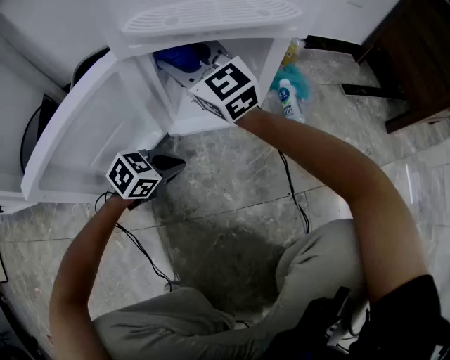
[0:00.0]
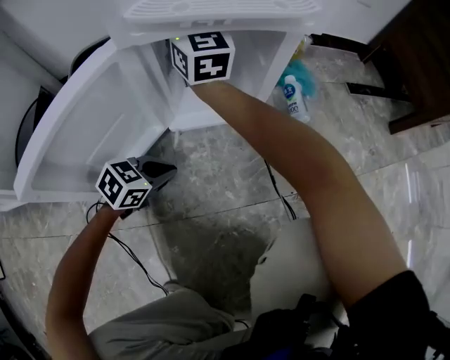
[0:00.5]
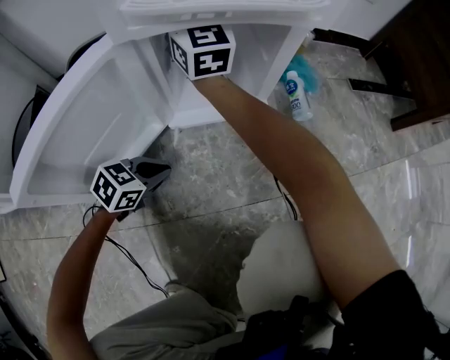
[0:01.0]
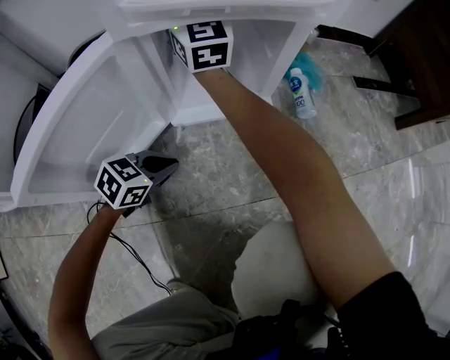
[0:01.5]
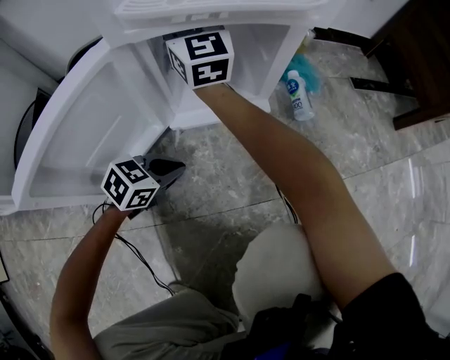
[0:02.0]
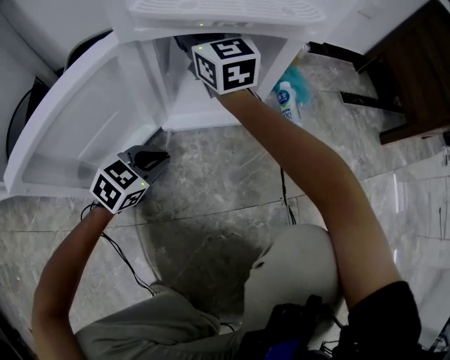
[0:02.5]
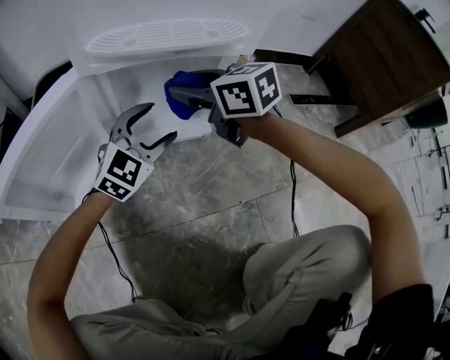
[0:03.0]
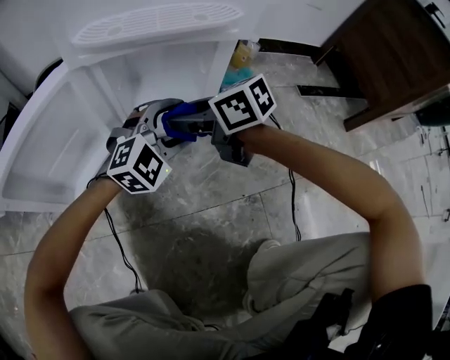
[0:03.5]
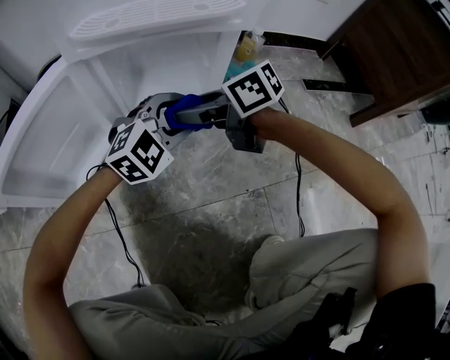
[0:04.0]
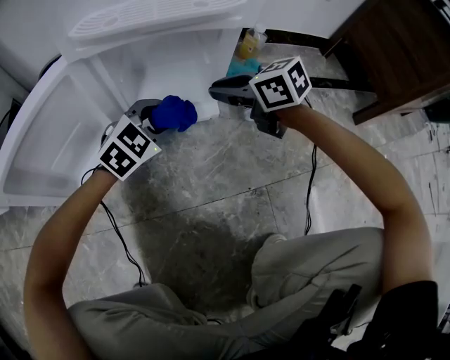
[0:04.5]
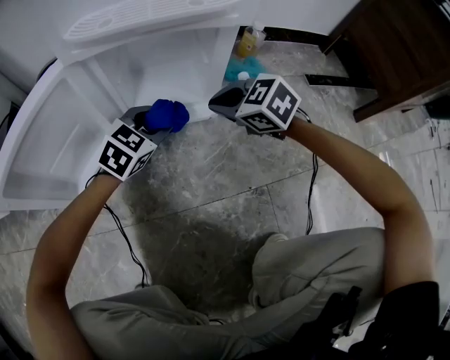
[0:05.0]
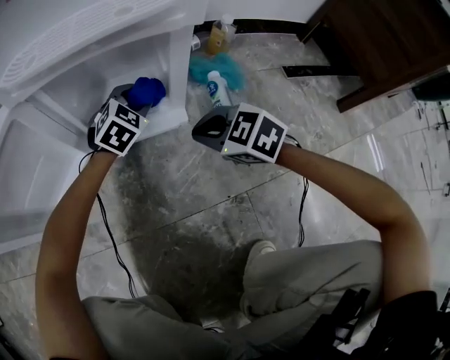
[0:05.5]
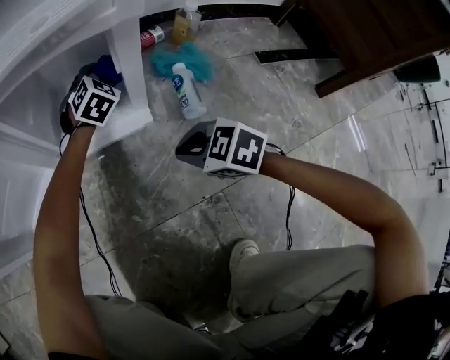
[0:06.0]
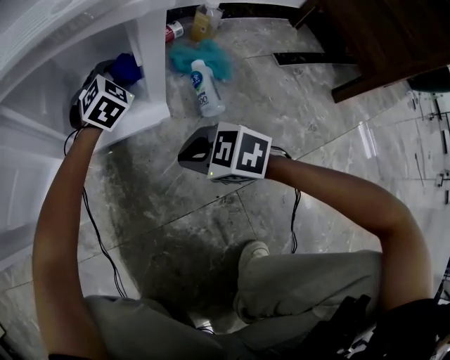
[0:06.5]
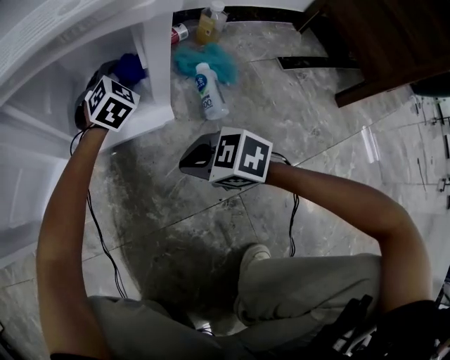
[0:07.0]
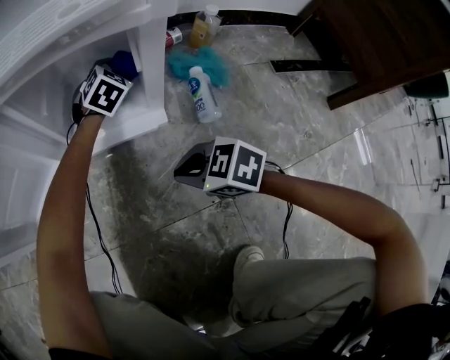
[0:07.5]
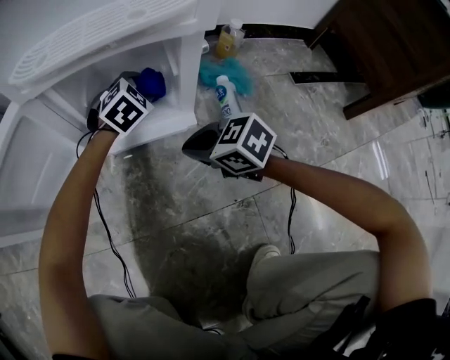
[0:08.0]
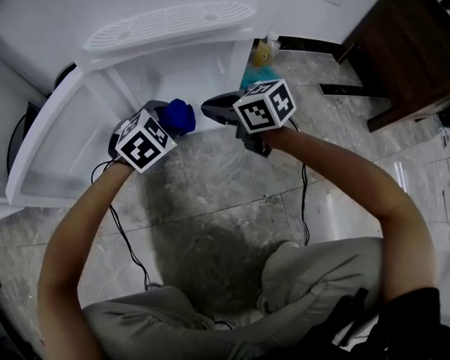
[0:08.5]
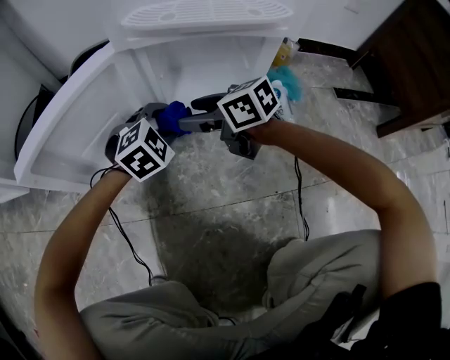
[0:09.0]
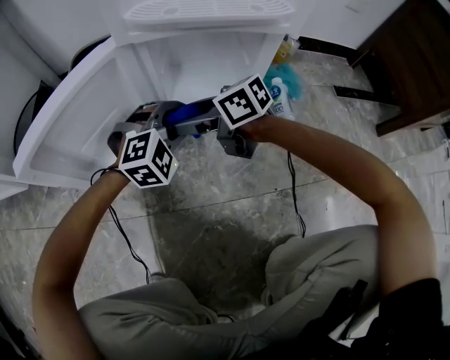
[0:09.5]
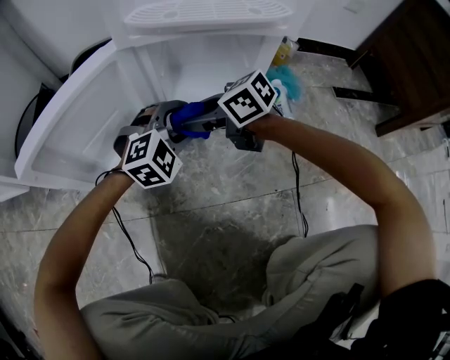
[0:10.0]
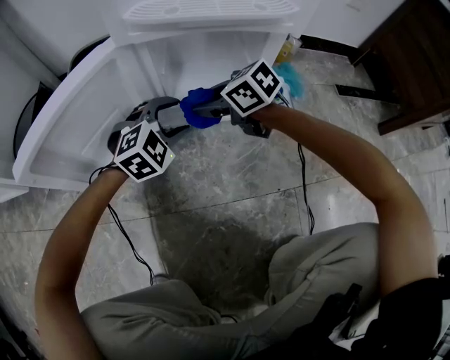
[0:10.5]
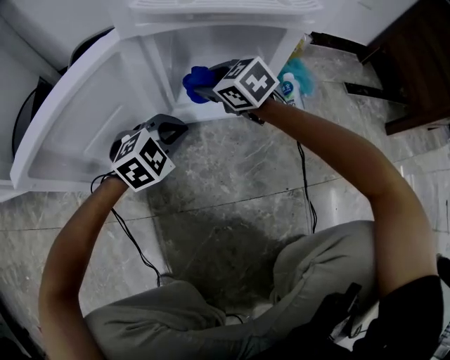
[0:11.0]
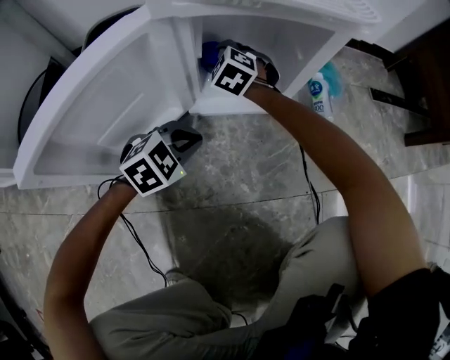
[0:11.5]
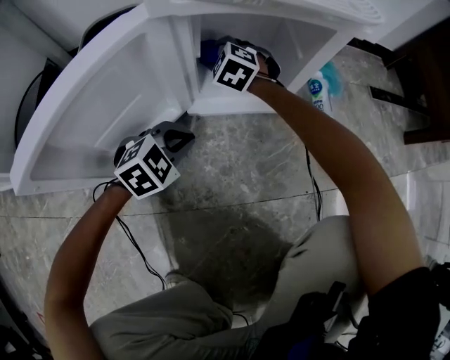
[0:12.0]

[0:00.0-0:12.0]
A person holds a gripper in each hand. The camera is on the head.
0:00.0 to 0:02.0: The right gripper heads forward, covering some 10 cm, and swivels about 30 degrees.
0:02.0 to 0:04.0: The left gripper ends up some 20 cm from where it was, rolls clockwise, seen from behind, by some 50 degrees, and opens up. The right gripper moves some 25 cm, and tips its fingers downward by roughly 40 degrees.
0:04.0 to 0:06.0: The right gripper shifts by roughly 20 cm, swivels some 40 degrees, and closes up, while the left gripper changes place by roughly 25 cm, and changes its angle by roughly 40 degrees.
0:06.0 to 0:08.0: The left gripper ends up about 5 cm from where it was; the right gripper is displaced forward and to the left by some 10 cm.
0:08.0 to 0:10.0: The right gripper is displaced to the left, forward and upward by some 15 cm, and opens; the left gripper moves backward and to the left, some 20 cm.
0:10.0 to 0:12.0: The left gripper shifts by about 10 cm, swivels roughly 30 degrees, and closes. The right gripper changes place by about 20 cm, and turns by approximately 60 degrees.

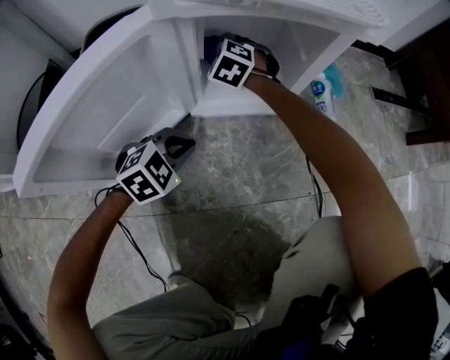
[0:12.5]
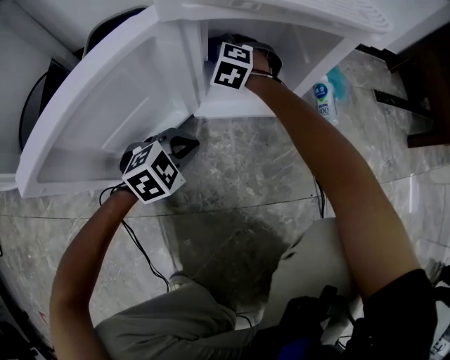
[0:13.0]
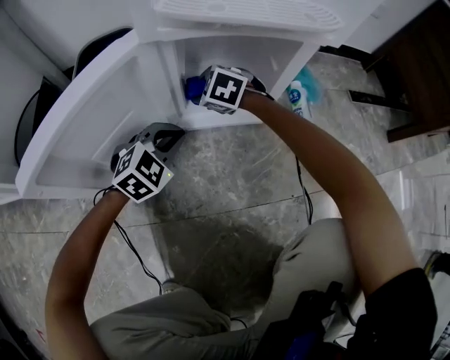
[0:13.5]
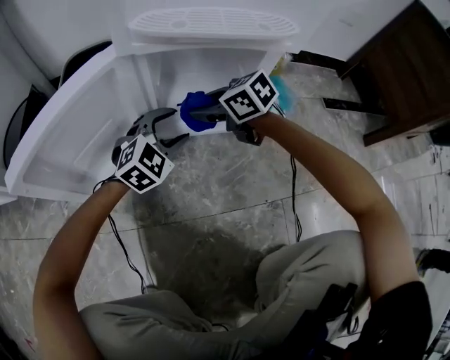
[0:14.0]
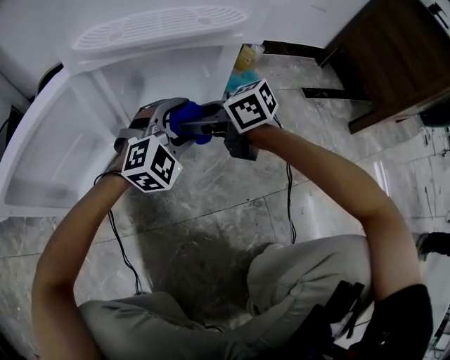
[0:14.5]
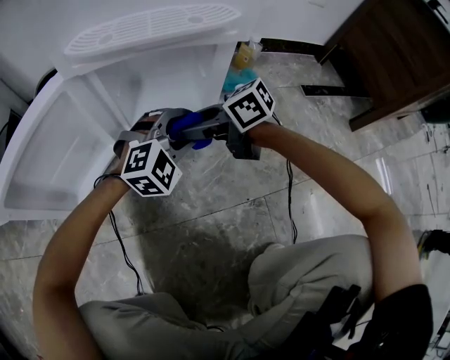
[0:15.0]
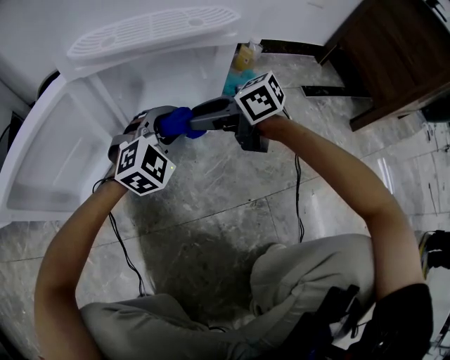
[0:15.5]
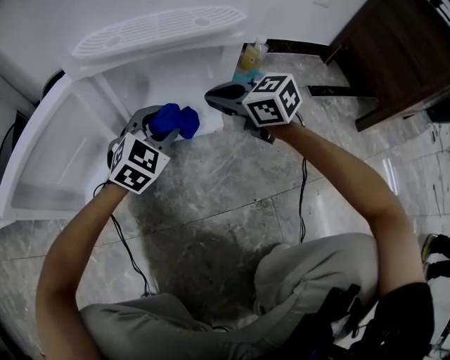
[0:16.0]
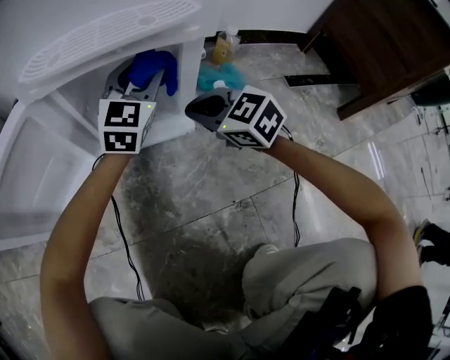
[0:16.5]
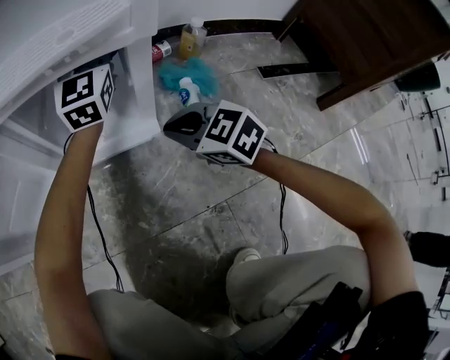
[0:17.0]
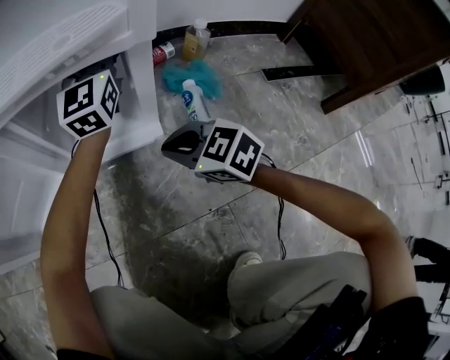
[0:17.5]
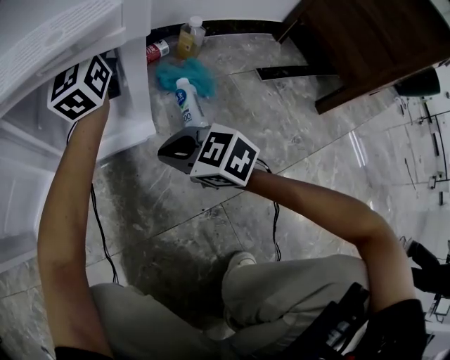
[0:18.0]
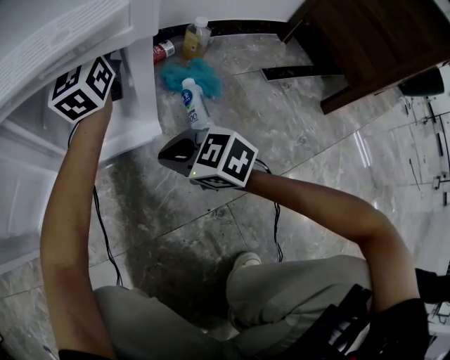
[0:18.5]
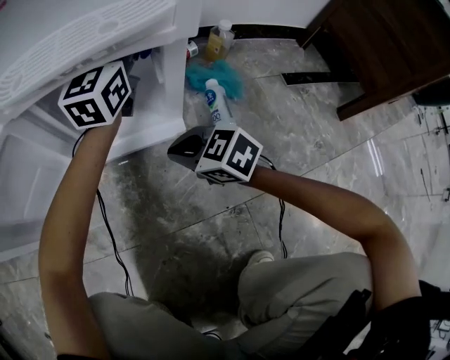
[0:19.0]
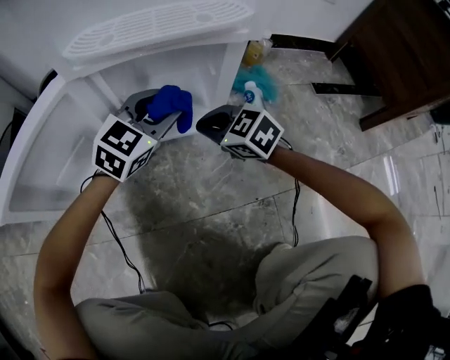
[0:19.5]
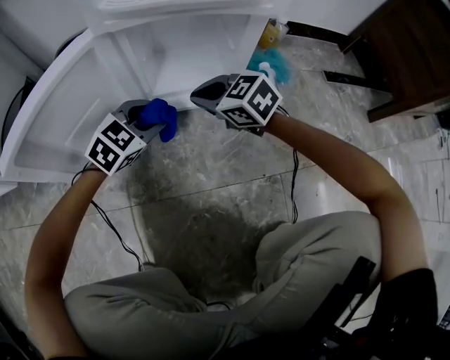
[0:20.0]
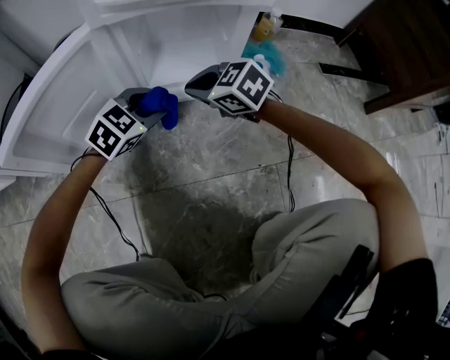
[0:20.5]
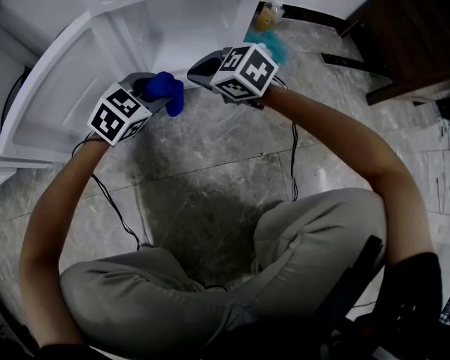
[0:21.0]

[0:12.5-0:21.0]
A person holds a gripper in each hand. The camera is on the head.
0:12.5 to 0:14.5: The right gripper moves about 25 cm, and turns by approximately 70 degrees. Meanwhile the left gripper moves about 25 cm, turns by approximately 30 degrees, and opens its fingers.
0:14.5 to 0:16.5: The left gripper changes place by roughly 15 cm, swivels about 40 degrees, and closes, while the right gripper moves approximately 10 cm, changes its angle by about 40 degrees, and closes.
0:16.5 to 0:19.0: The right gripper heads downward, covering about 5 cm, while the left gripper heads upward and forward, covering roughly 10 cm.
0:19.0 to 0:21.0: The right gripper travels to the left by about 10 cm, while the left gripper moves backward, downward and to the left, roughly 30 cm, and angles its fingers downward, by roughly 40 degrees.

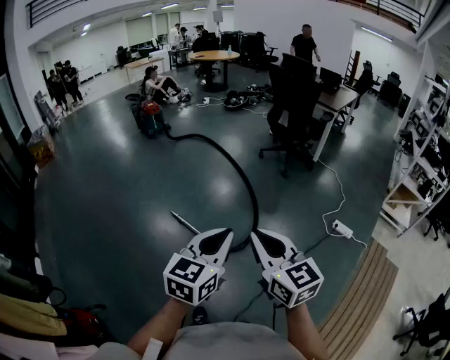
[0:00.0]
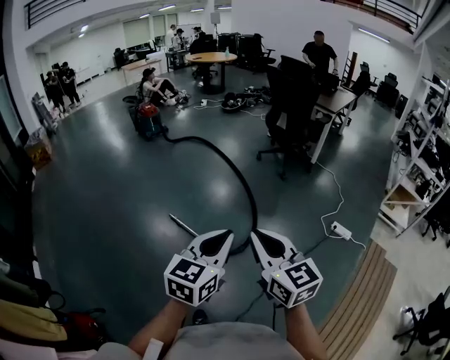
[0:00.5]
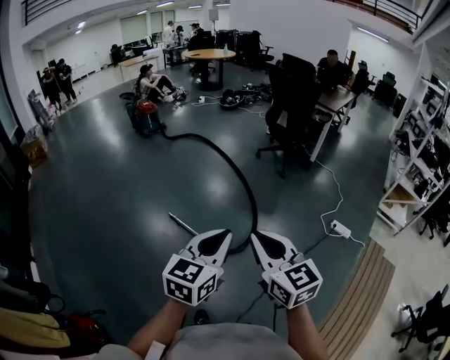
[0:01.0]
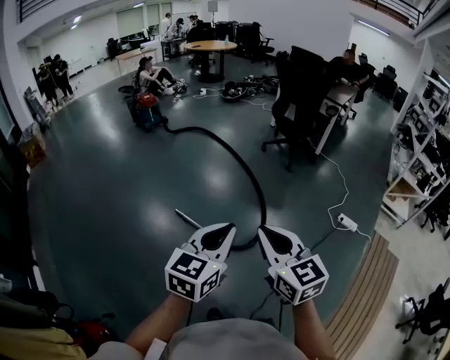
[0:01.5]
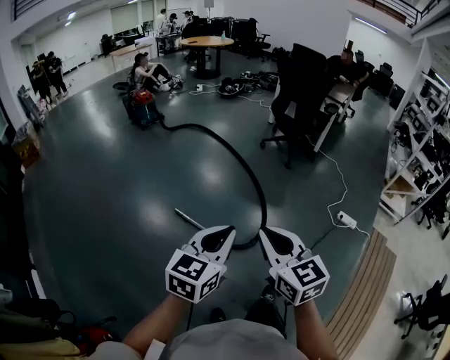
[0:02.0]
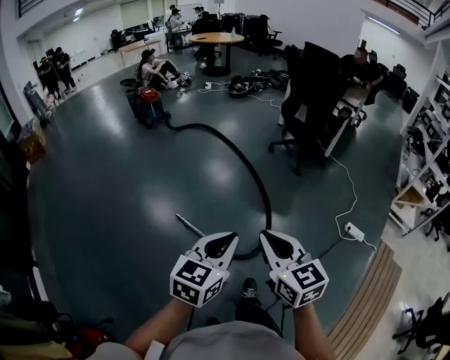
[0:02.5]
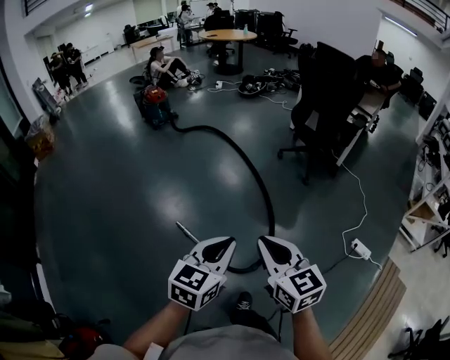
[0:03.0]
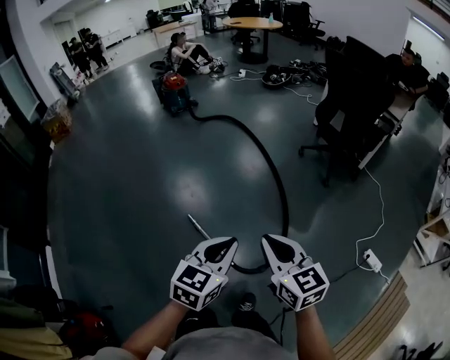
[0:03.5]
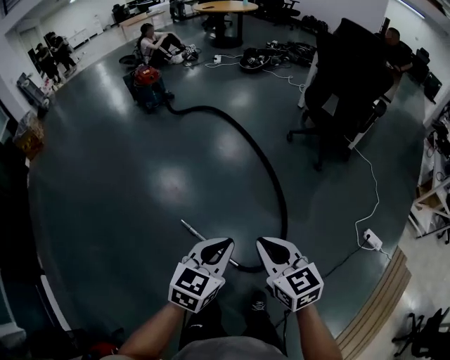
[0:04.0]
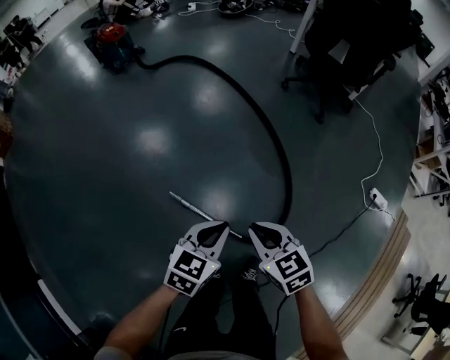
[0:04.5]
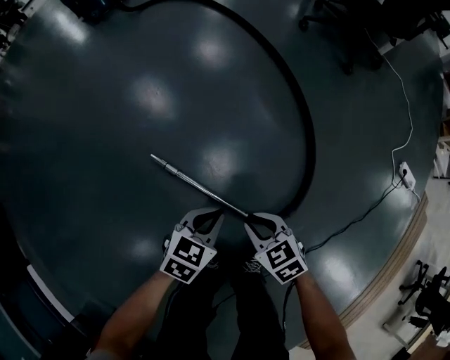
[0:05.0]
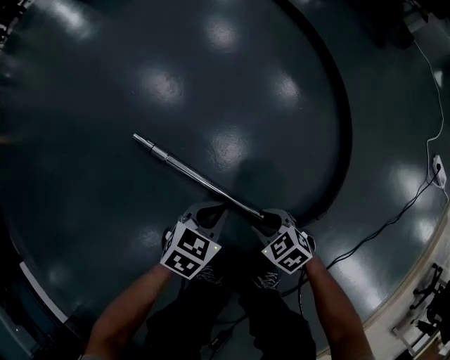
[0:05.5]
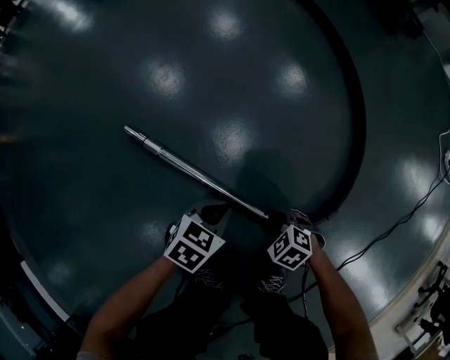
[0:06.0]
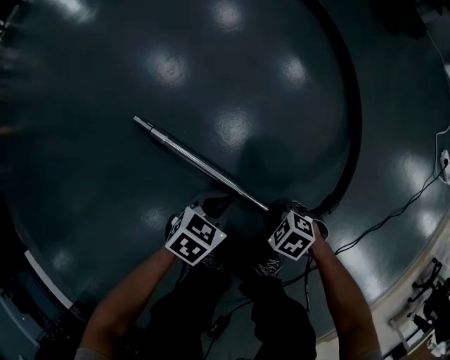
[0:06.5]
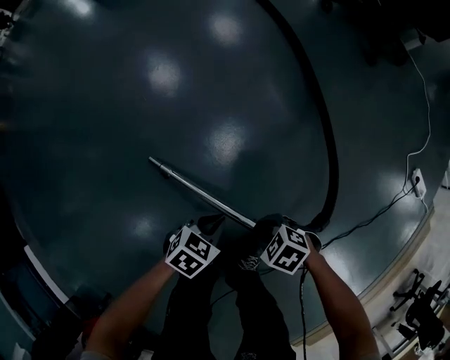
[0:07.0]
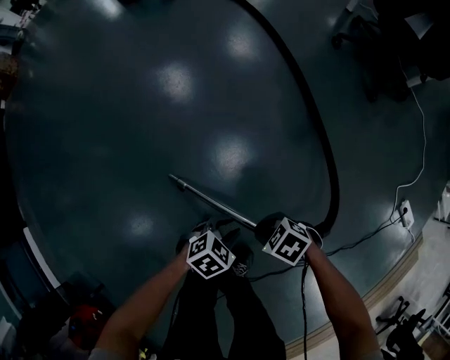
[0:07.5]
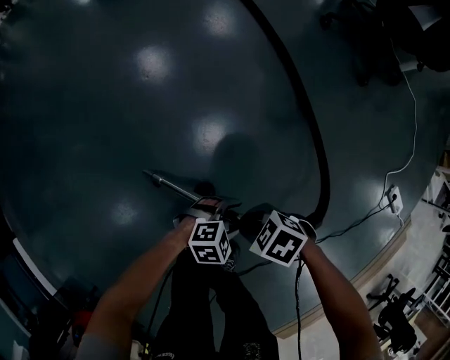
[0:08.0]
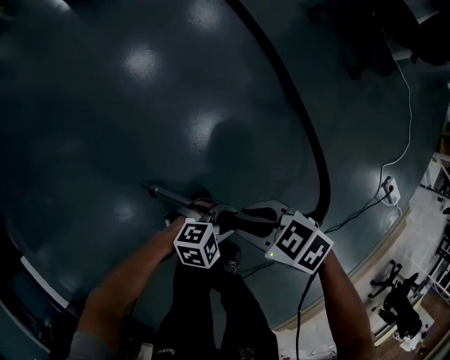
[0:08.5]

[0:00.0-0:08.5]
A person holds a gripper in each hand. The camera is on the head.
0:00.0 to 0:02.0: The grippers both shift to the left and forward by about 20 cm.
0:02.0 to 0:04.0: Both grippers travel together forward, about 35 cm.
0:04.0 to 0:06.5: The two grippers go roughly 80 cm downward. The left gripper changes its angle by some 40 degrees. Meanwhile the right gripper points its fingers some 40 degrees further downward, and opens its fingers.
0:06.5 to 0:08.5: The left gripper heads upward, covering roughly 20 cm, turns by about 40 degrees, and opens its fingers. The right gripper moves upward, roughly 35 cm, and changes its angle by about 20 degrees.
